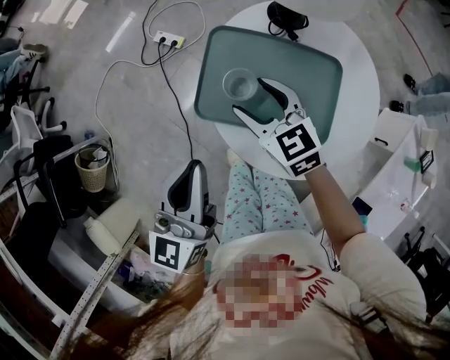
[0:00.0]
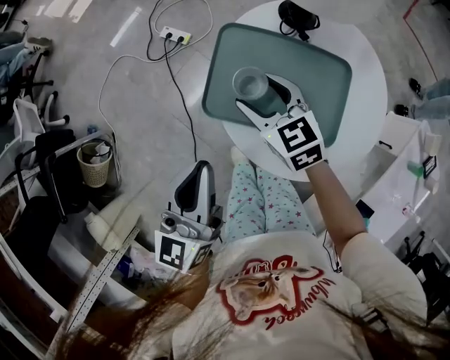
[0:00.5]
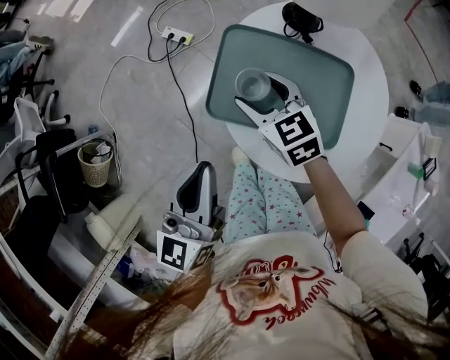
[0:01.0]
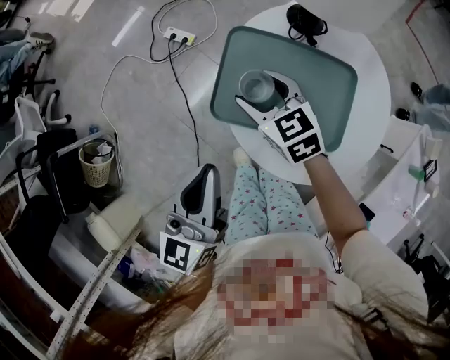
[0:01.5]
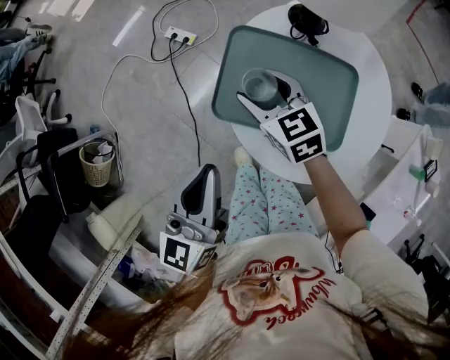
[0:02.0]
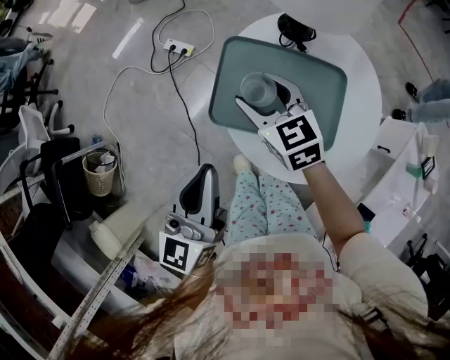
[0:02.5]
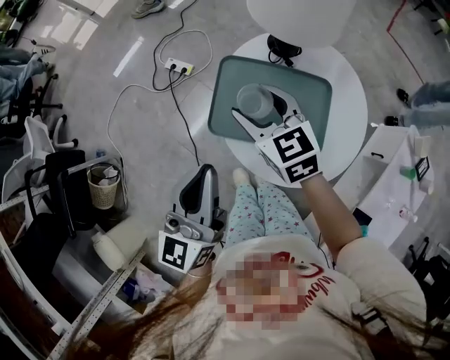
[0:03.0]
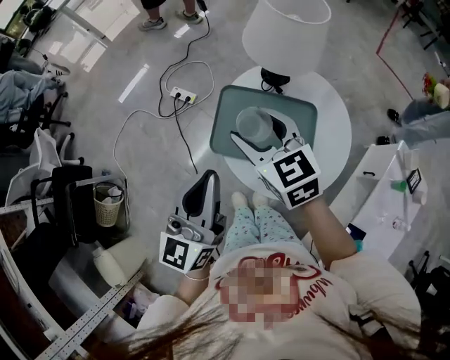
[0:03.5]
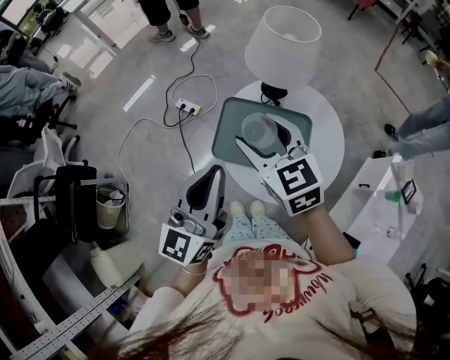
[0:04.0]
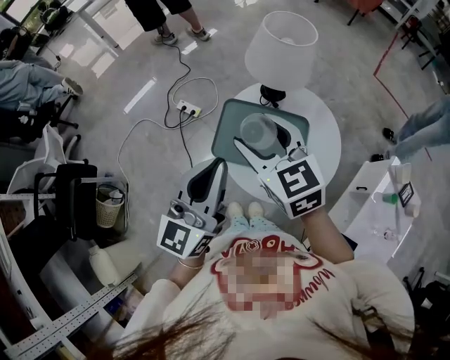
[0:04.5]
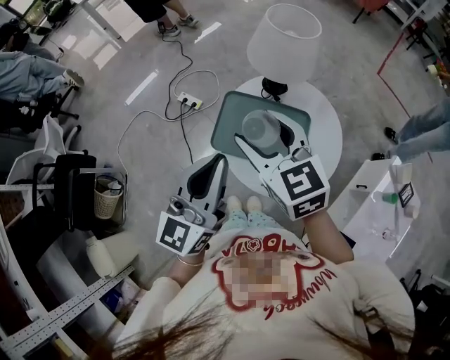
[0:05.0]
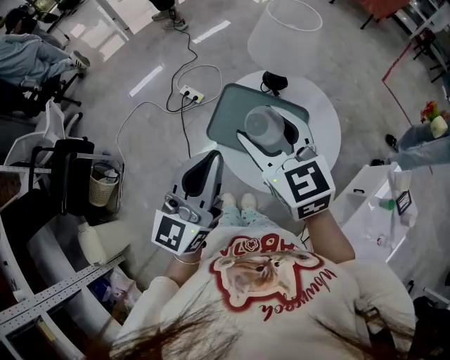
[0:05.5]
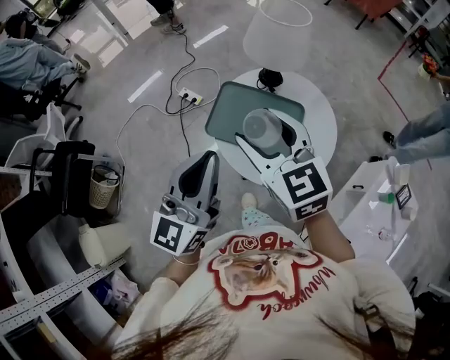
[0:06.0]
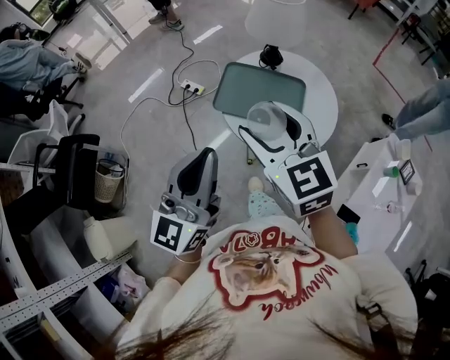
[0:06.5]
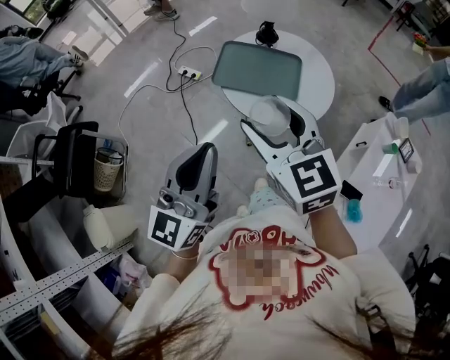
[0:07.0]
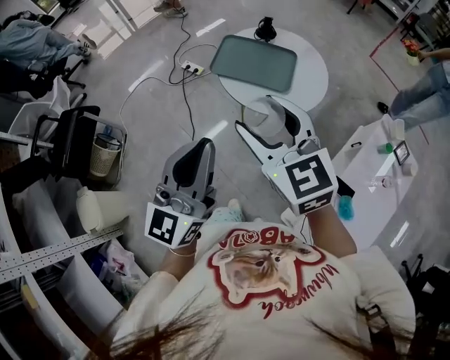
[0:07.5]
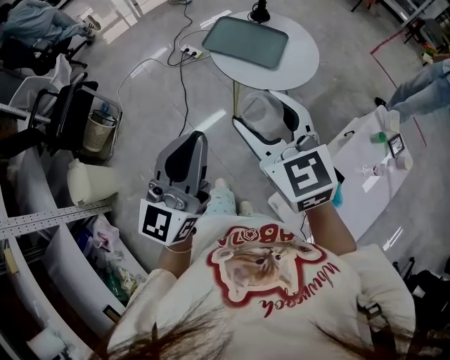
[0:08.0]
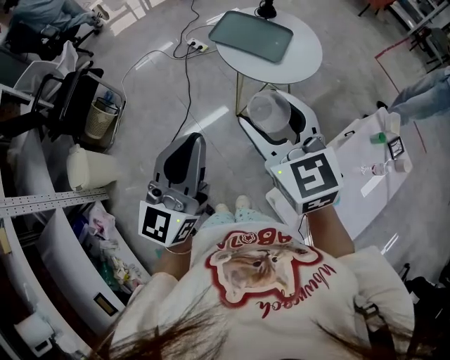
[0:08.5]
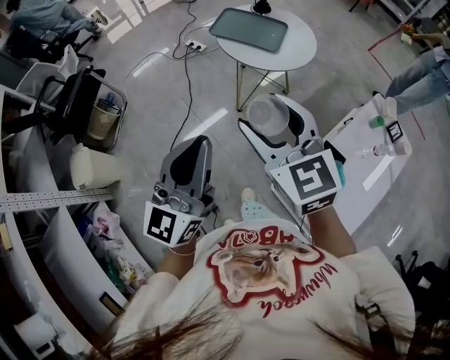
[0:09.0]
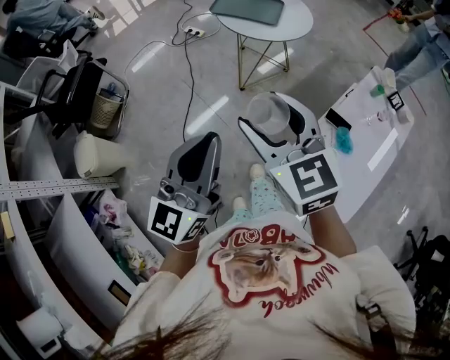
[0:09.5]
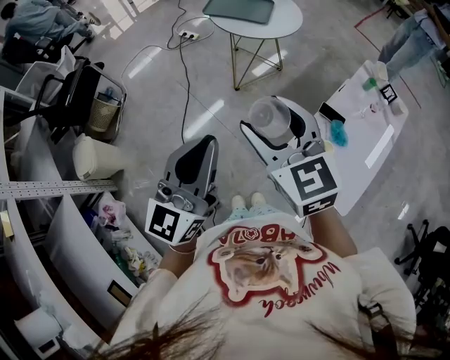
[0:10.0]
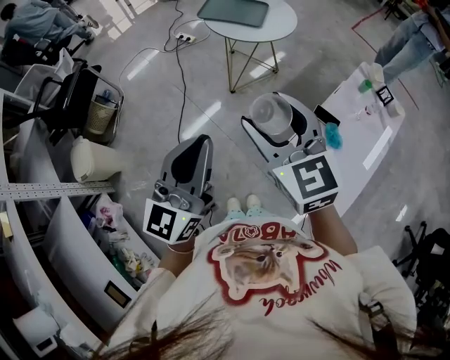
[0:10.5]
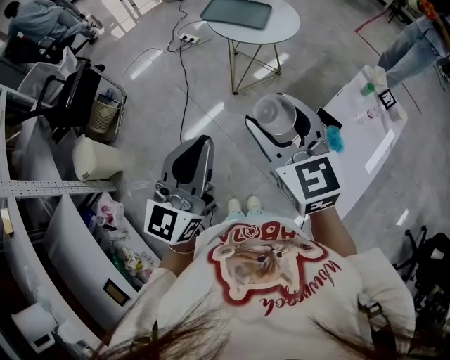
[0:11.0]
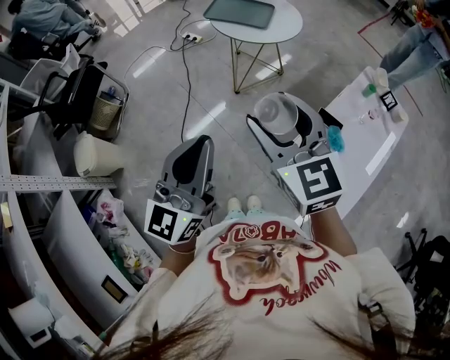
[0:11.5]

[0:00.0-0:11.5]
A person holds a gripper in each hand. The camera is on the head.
0:00.0 to 0:02.0: There are only small adjustments of the grippers.
0:02.0 to 0:04.0: The left gripper is displaced upward by approximately 15 cm, while the right gripper moves upward, some 25 cm.
0:04.0 to 0:06.0: The two grippers go some 10 cm backward.
0:06.0 to 0:07.5: The grippers both shift backward by roughly 25 cm.
0:07.5 to 0:09.5: Both grippers move backward, about 35 cm.
0:09.5 to 0:11.5: The right gripper moves to the right, about 5 cm.

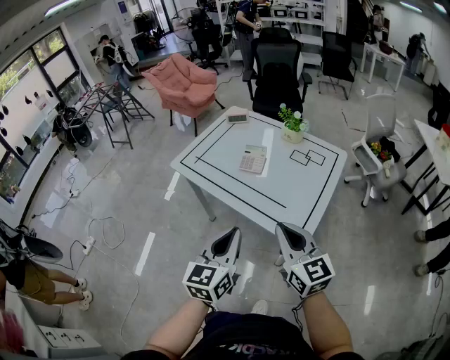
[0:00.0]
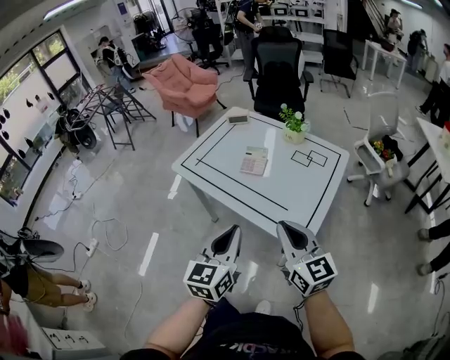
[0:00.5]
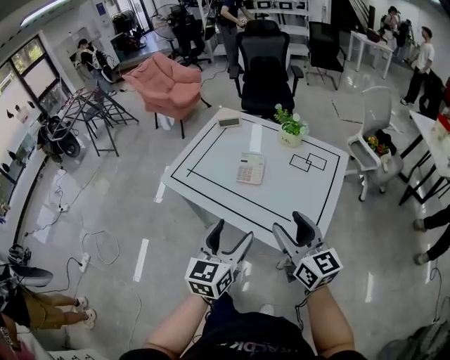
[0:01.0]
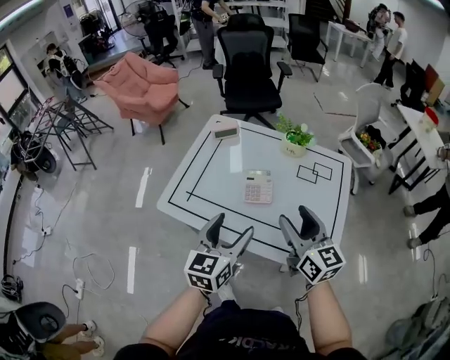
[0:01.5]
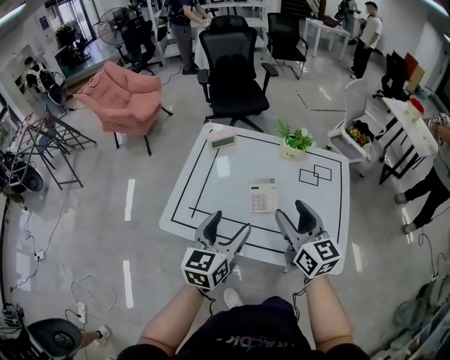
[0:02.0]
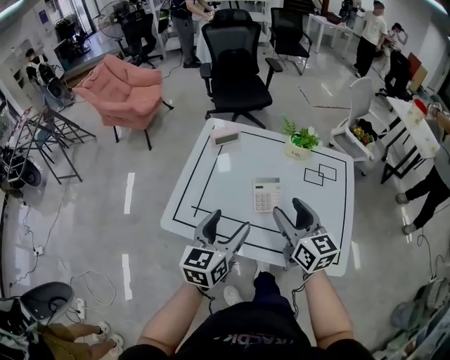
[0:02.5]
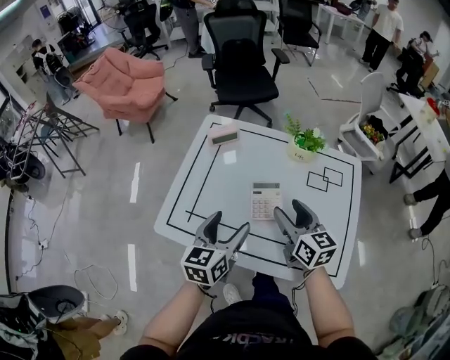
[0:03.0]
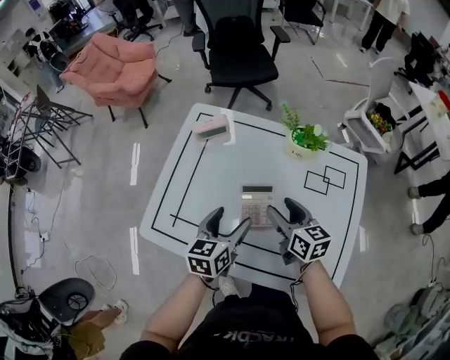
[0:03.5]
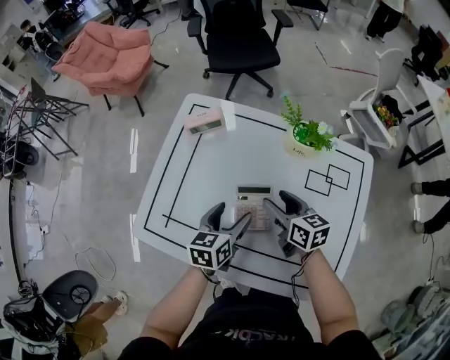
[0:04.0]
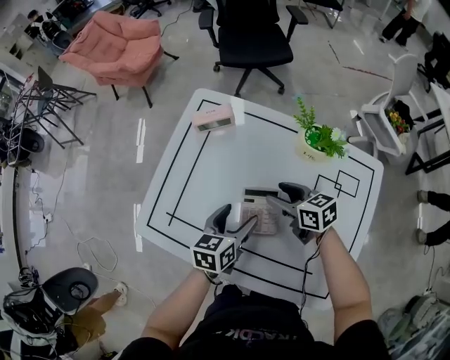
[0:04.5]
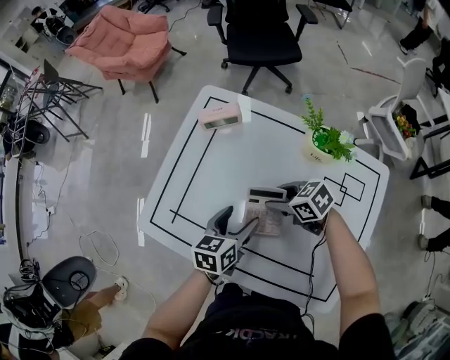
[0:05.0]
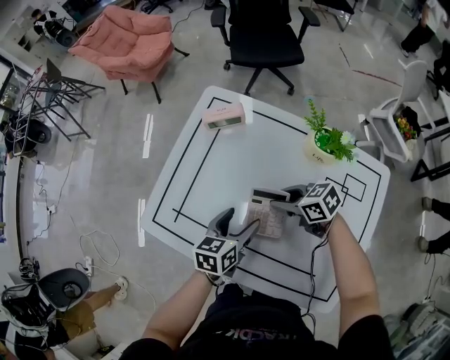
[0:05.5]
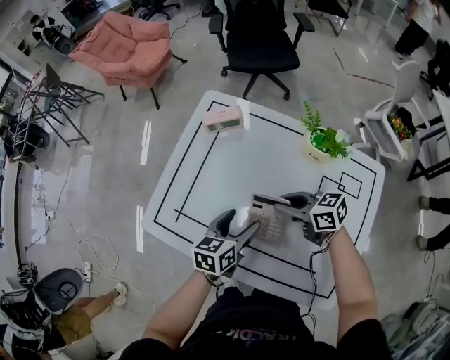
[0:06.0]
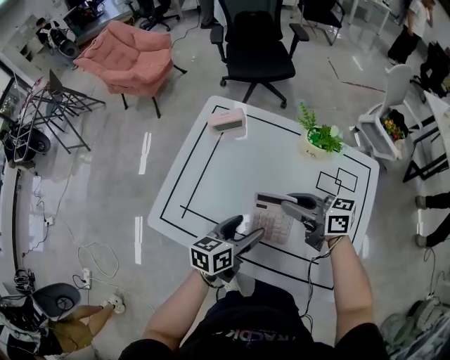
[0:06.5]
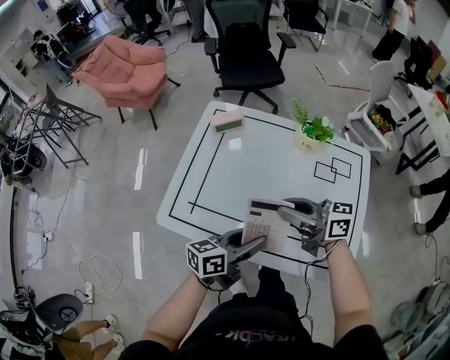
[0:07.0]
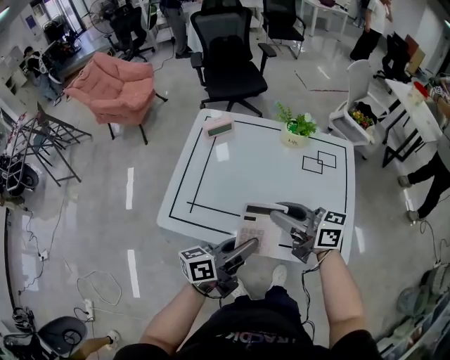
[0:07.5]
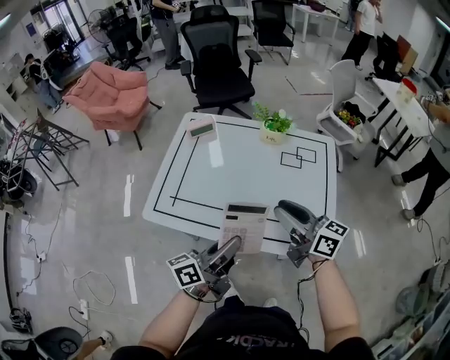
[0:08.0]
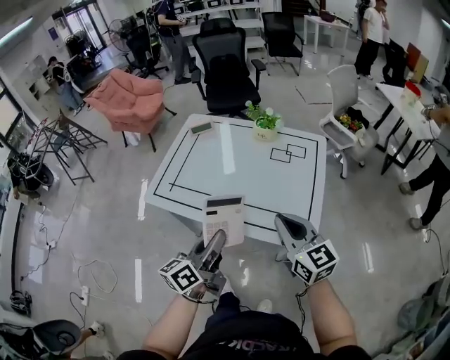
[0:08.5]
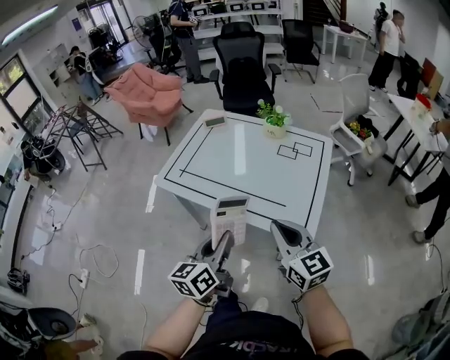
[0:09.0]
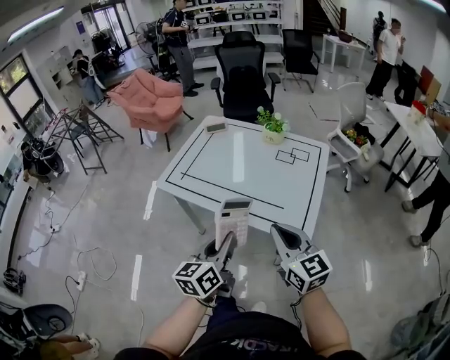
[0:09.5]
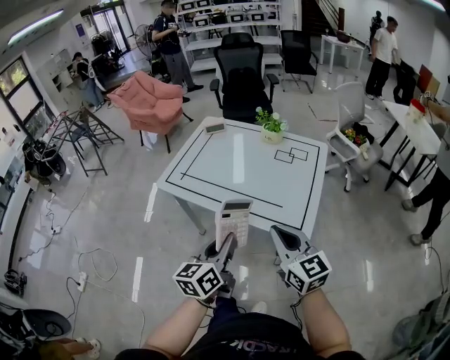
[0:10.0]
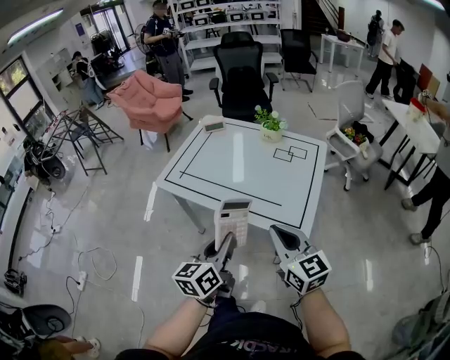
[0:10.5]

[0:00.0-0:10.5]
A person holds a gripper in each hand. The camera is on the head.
0:00.0 to 0:02.0: Both grippers travel together forward and to the left, some 35 cm. The right gripper rotates roughly 30 degrees, and opens. The left gripper turns by roughly 20 degrees, and opens.
0:02.0 to 0:04.0: The right gripper moves downward and forward, some 30 cm, and changes its angle by about 30 degrees; the left gripper goes about 25 cm downward, forward and to the right, and swivels approximately 20 degrees.
0:04.0 to 0:06.5: The right gripper shifts approximately 10 cm upward, changes its angle by roughly 30 degrees, and closes, while the left gripper goes roughly 5 cm backward.
0:06.5 to 0:08.5: The right gripper heads backward, covering some 30 cm, and turns by about 50 degrees; the left gripper is displaced backward and upward by about 30 cm, rotates some 30 degrees, and closes its fingers.
0:08.5 to 0:10.5: The two grippers go roughly 10 cm backward.

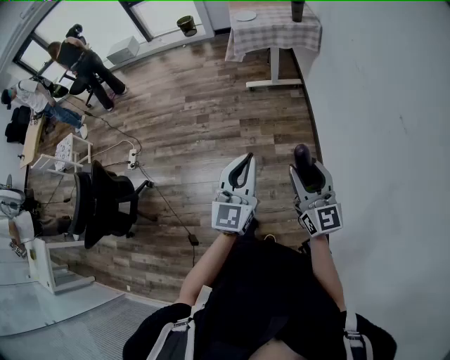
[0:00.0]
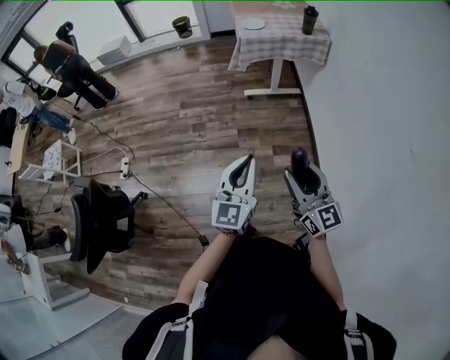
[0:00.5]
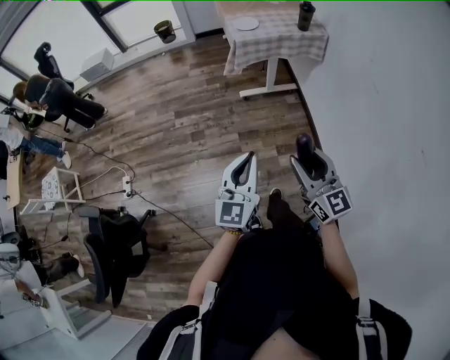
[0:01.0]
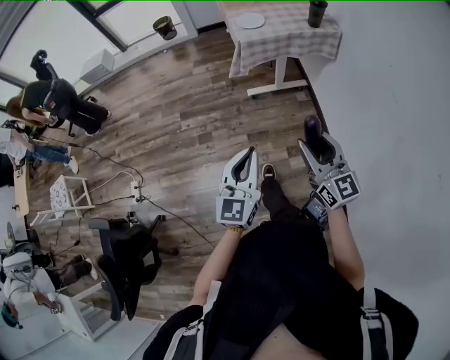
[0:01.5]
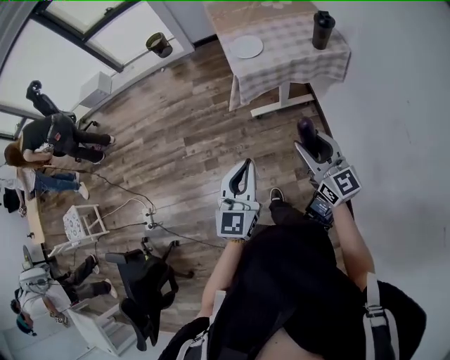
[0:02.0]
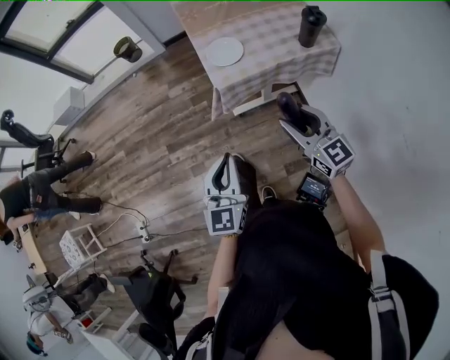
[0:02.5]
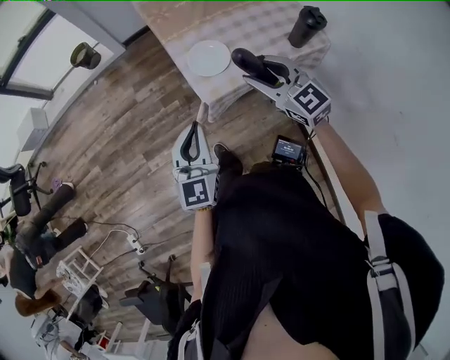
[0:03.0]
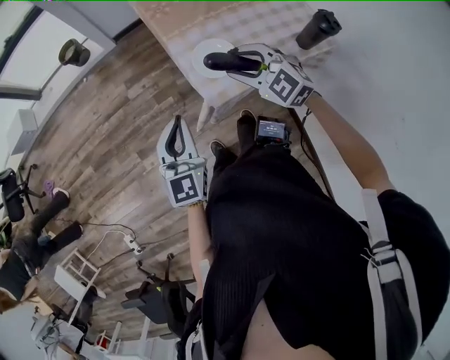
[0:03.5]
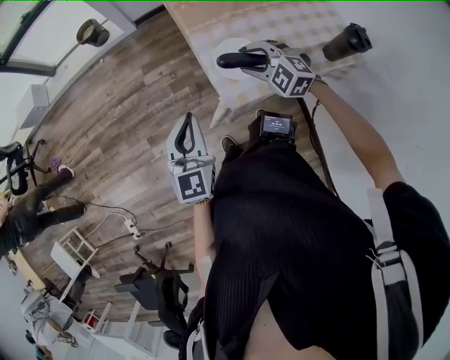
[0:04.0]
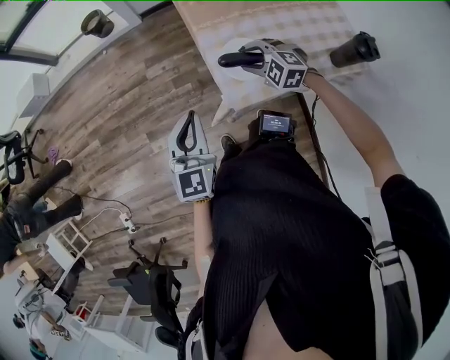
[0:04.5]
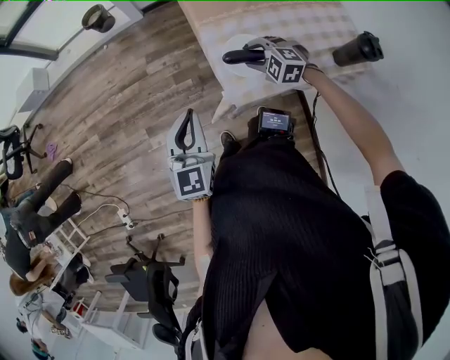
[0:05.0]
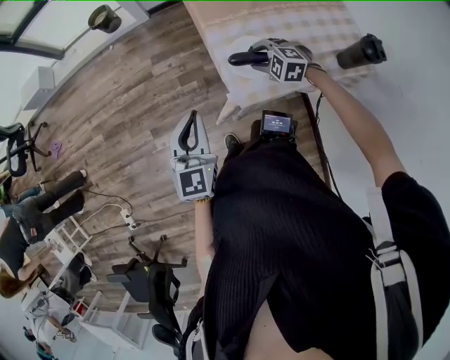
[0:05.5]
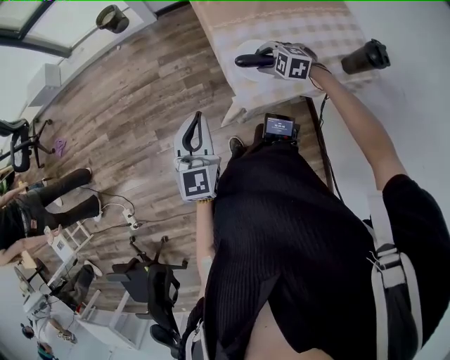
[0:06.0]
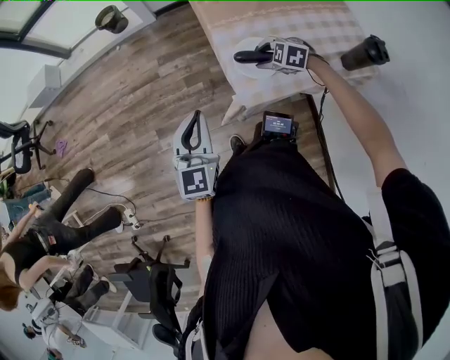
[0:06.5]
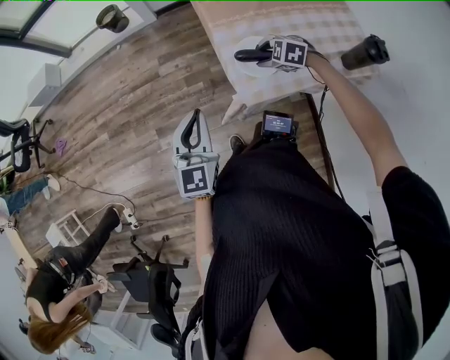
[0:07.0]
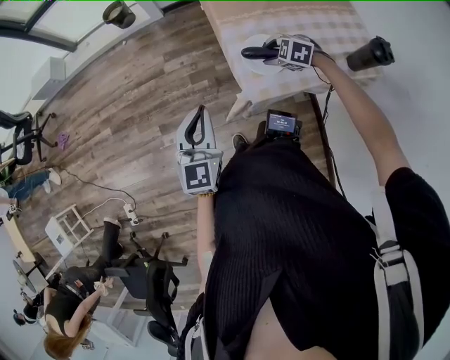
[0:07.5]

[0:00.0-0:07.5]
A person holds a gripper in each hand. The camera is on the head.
0:00.0 to 0:02.0: Both grippers are carried forward, some 60 cm.
0:02.0 to 0:04.0: Both grippers are carried forward, some 50 cm. The right gripper points its fingers approximately 40 degrees further downward.
0:04.0 to 0:05.5: The right gripper moves downward, roughly 10 cm.
0:05.5 to 0:07.5: The grippers stay close to where they were, moving slightly.
